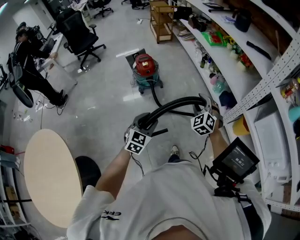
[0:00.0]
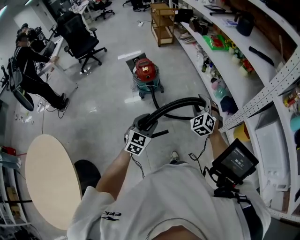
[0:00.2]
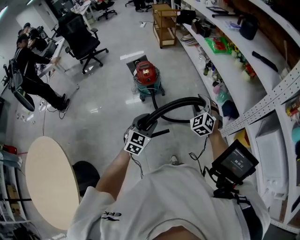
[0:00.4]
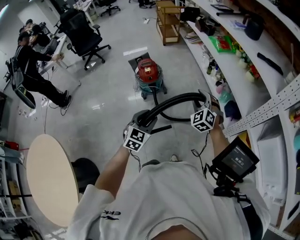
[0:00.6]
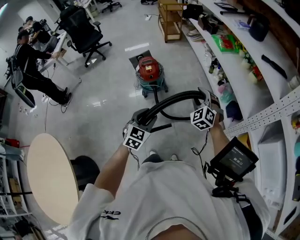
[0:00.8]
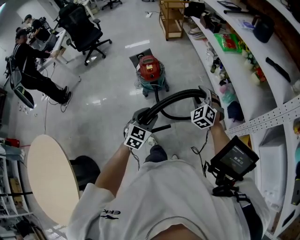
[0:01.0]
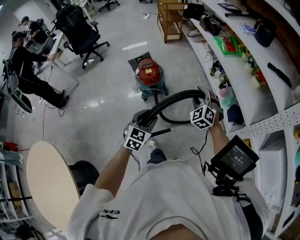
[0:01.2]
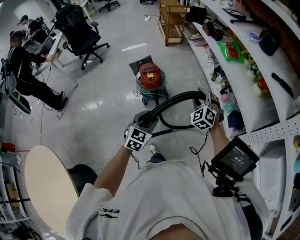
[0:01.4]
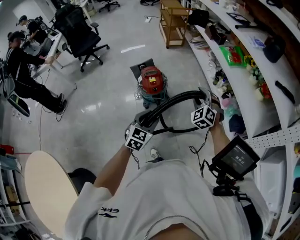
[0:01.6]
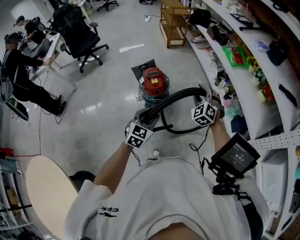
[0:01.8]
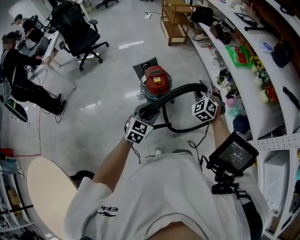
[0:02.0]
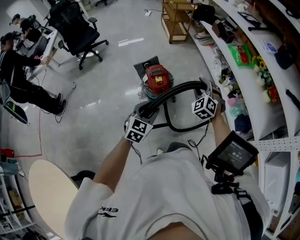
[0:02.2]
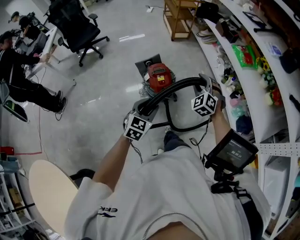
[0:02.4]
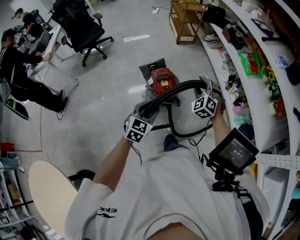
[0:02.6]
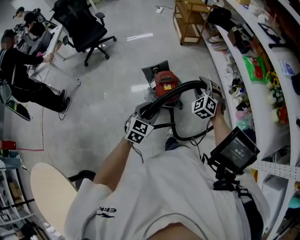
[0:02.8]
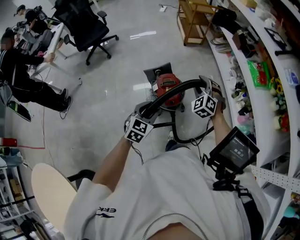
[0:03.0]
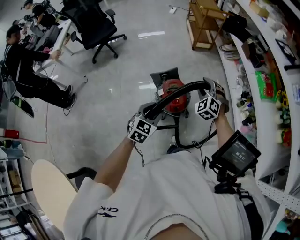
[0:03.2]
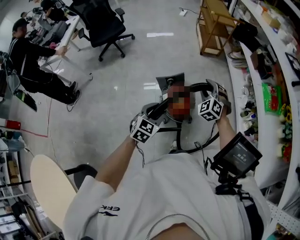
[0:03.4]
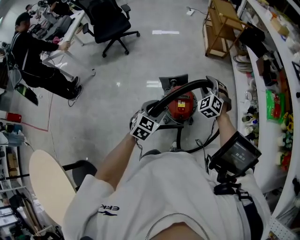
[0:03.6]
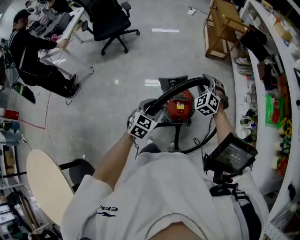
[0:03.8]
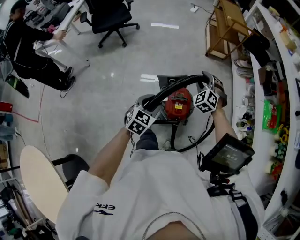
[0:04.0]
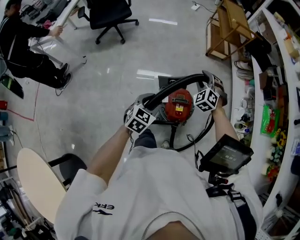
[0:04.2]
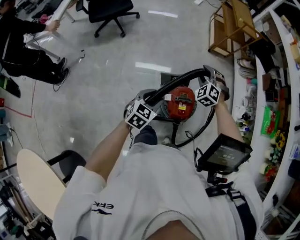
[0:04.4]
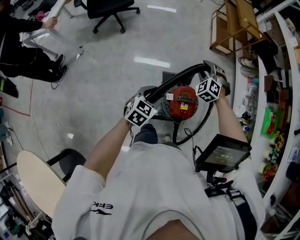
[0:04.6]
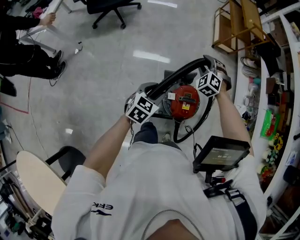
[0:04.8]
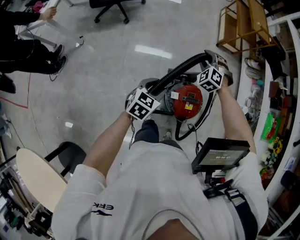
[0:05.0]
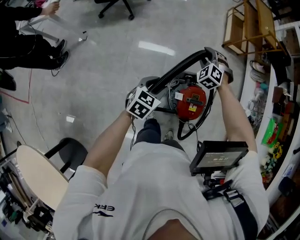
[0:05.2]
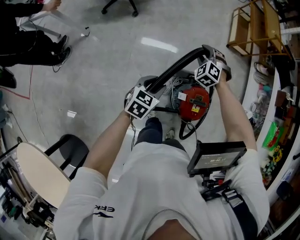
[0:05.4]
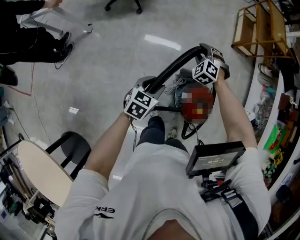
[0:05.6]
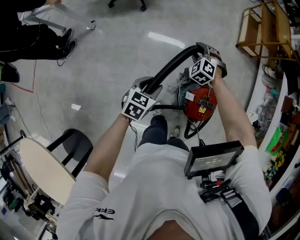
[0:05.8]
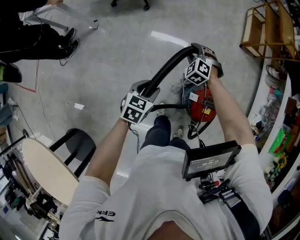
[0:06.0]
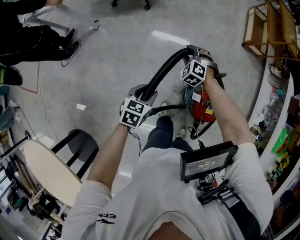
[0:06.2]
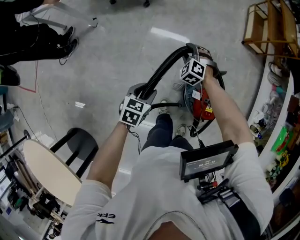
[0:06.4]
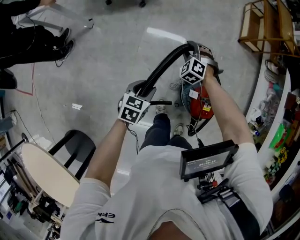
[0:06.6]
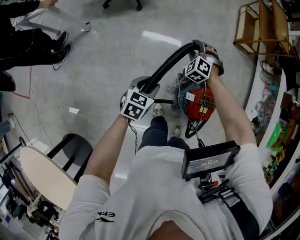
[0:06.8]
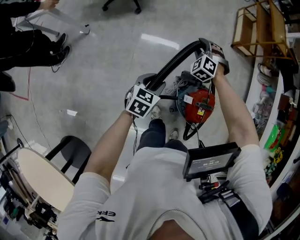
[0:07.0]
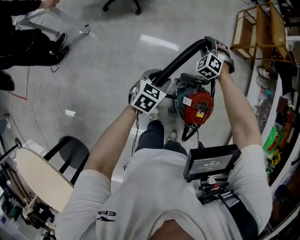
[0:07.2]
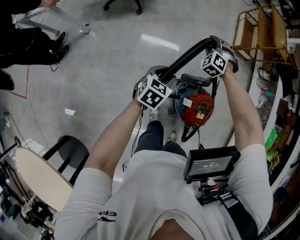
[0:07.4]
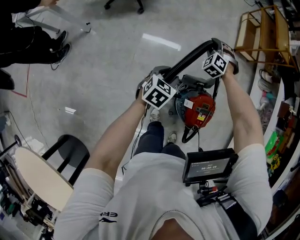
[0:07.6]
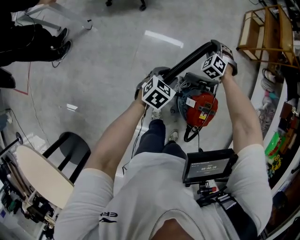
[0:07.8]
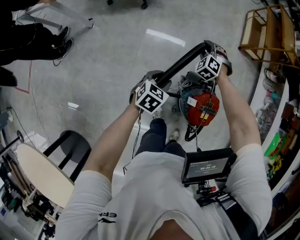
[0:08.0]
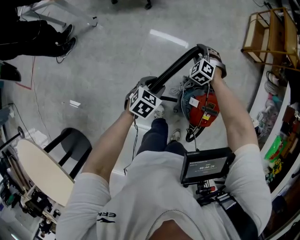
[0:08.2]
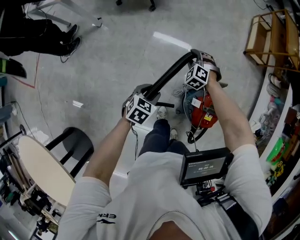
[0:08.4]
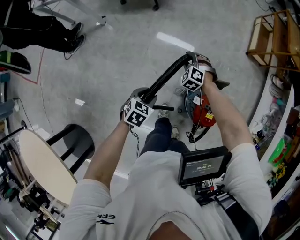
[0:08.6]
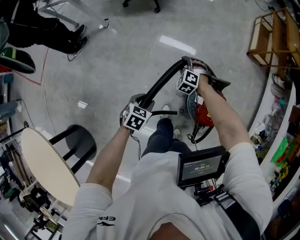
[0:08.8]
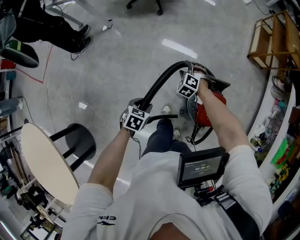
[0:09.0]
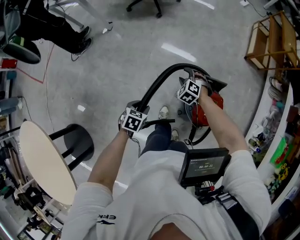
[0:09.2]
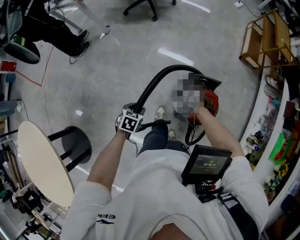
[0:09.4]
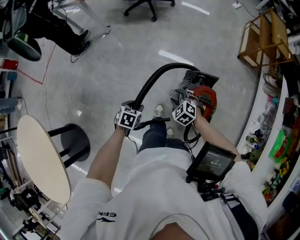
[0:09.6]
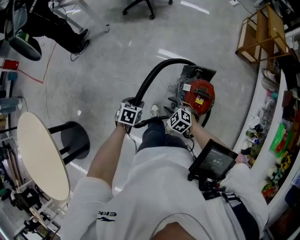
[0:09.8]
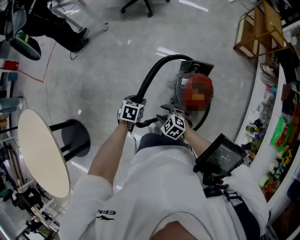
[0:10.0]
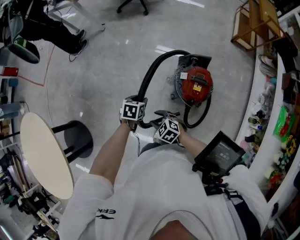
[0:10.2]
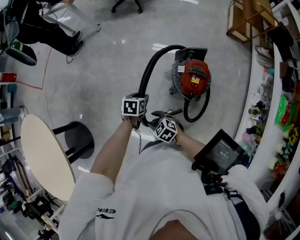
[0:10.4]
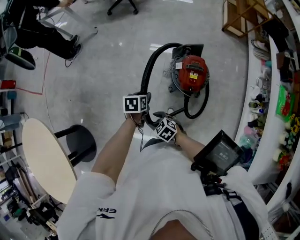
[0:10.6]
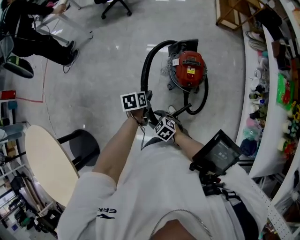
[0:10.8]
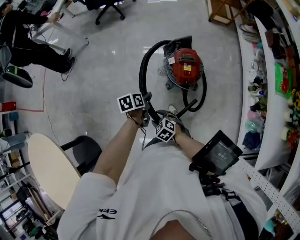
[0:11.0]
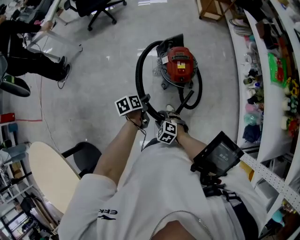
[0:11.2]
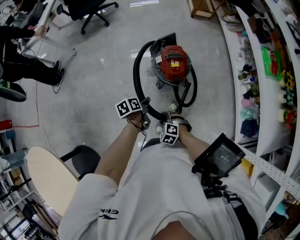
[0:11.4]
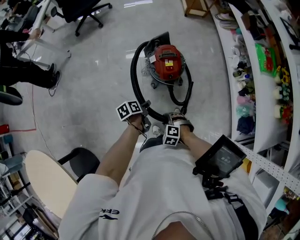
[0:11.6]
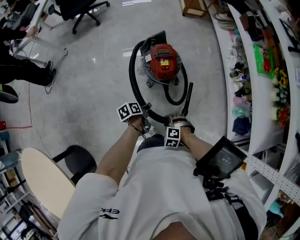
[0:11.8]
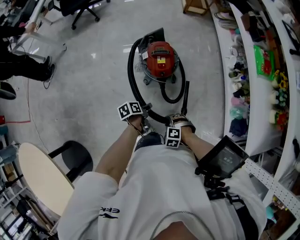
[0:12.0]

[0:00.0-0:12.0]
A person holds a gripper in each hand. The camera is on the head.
0:00.0 to 0:01.6: The left gripper moves forward, approximately 30 cm. The right gripper heads forward and to the left, covering about 35 cm.
0:01.6 to 0:03.0: The grippers both shift forward and to the left by about 30 cm.
0:03.0 to 0:04.4: Both grippers move forward and to the left, approximately 30 cm.
0:04.4 to 0:06.0: The two grippers go roughly 30 cm to the left and downward. The left gripper rotates approximately 20 degrees.
0:06.0 to 0:07.6: The left gripper heads forward, covering about 15 cm. Meanwhile the right gripper travels forward and to the right by approximately 15 cm.
0:07.6 to 0:09.0: The grippers both shift backward by about 25 cm. The right gripper changes its angle by approximately 20 degrees. The left gripper changes its angle by about 30 degrees.
0:09.0 to 0:10.4: The left gripper ends up about 20 cm from where it was. Meanwhile the right gripper moves roughly 50 cm, and rotates about 40 degrees.
0:10.4 to 0:12.0: The right gripper changes place by approximately 25 cm, and rotates approximately 30 degrees; the left gripper shifts by approximately 25 cm, and changes its angle by about 40 degrees.

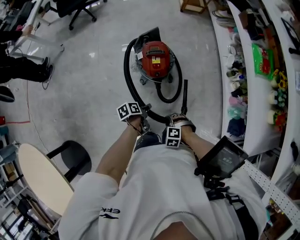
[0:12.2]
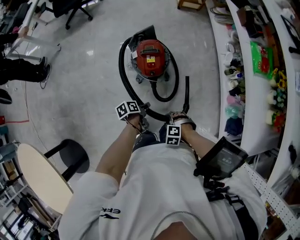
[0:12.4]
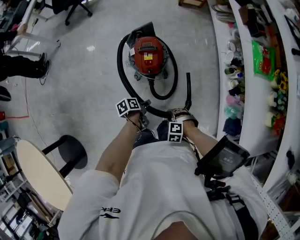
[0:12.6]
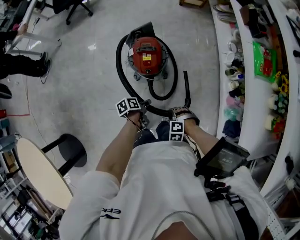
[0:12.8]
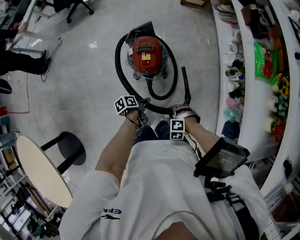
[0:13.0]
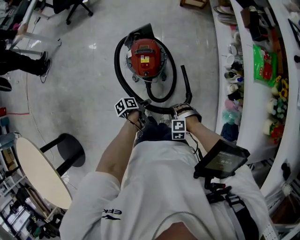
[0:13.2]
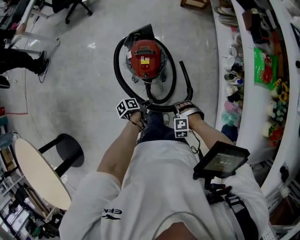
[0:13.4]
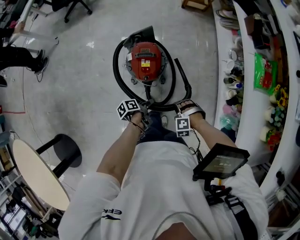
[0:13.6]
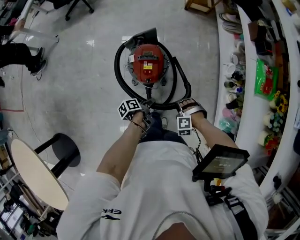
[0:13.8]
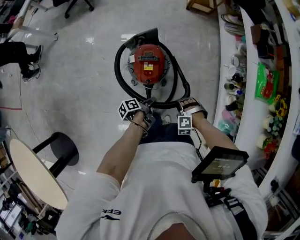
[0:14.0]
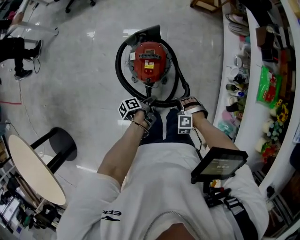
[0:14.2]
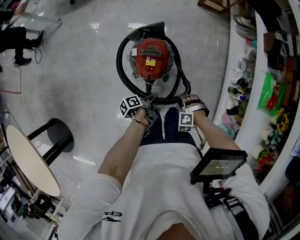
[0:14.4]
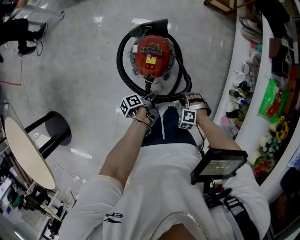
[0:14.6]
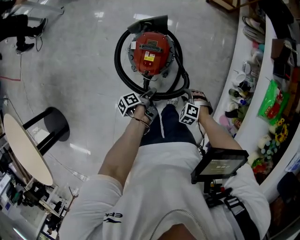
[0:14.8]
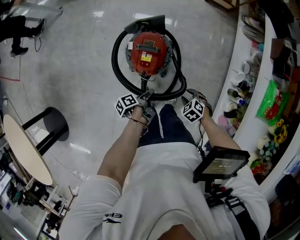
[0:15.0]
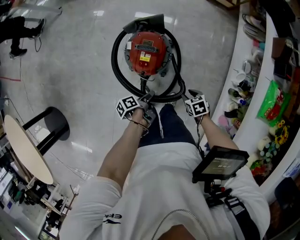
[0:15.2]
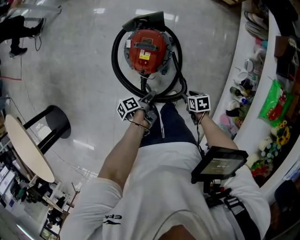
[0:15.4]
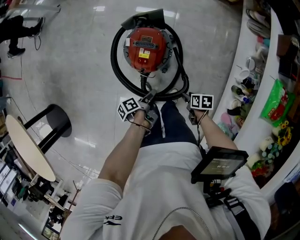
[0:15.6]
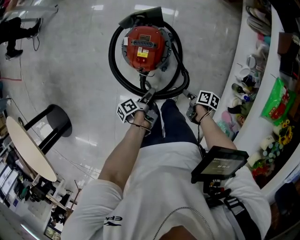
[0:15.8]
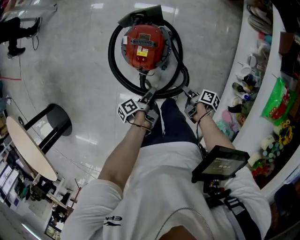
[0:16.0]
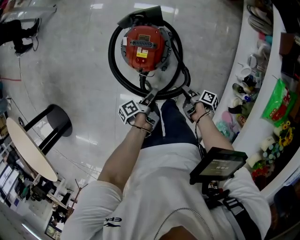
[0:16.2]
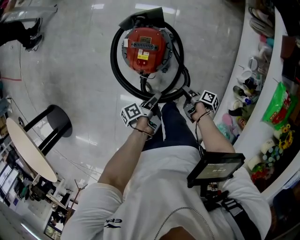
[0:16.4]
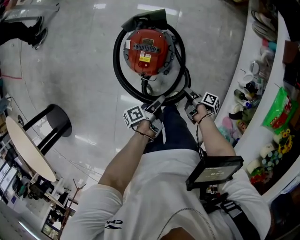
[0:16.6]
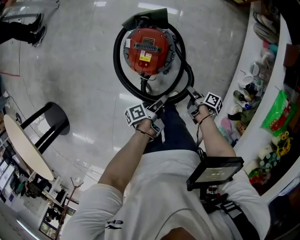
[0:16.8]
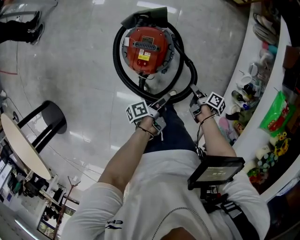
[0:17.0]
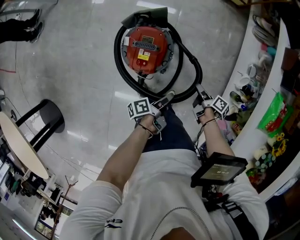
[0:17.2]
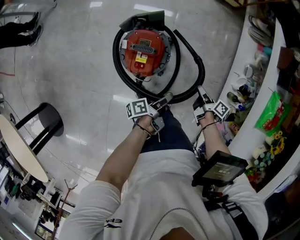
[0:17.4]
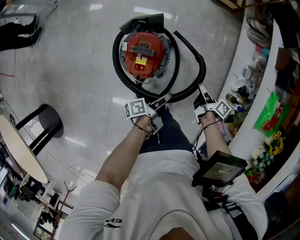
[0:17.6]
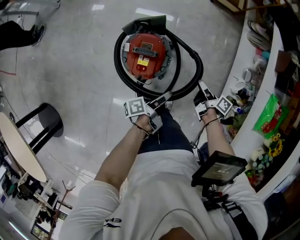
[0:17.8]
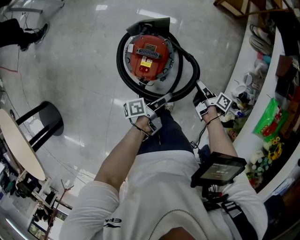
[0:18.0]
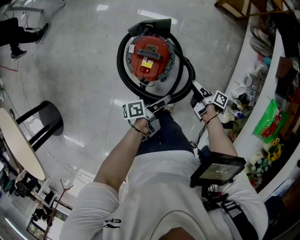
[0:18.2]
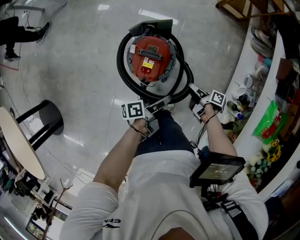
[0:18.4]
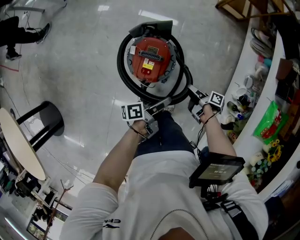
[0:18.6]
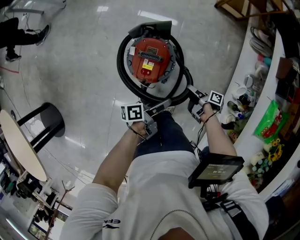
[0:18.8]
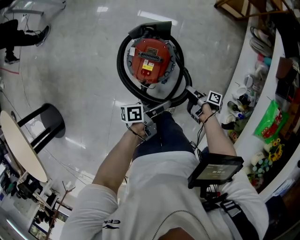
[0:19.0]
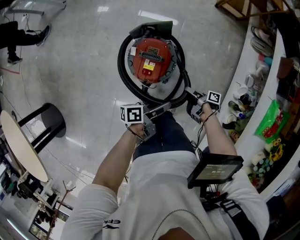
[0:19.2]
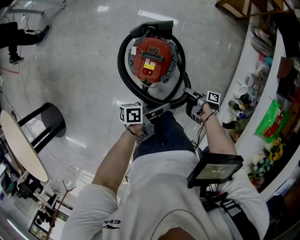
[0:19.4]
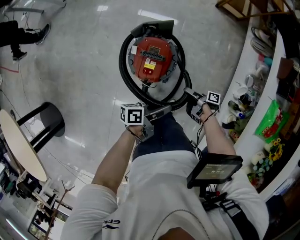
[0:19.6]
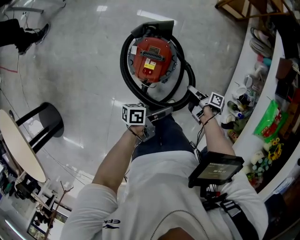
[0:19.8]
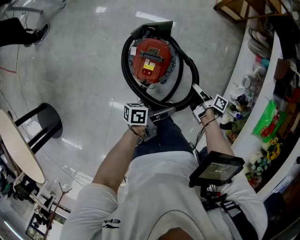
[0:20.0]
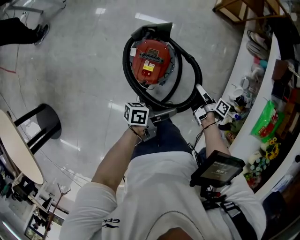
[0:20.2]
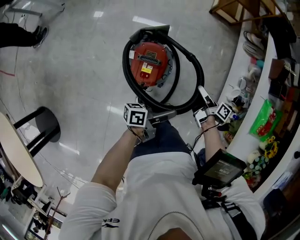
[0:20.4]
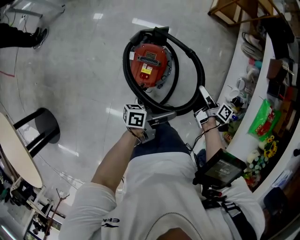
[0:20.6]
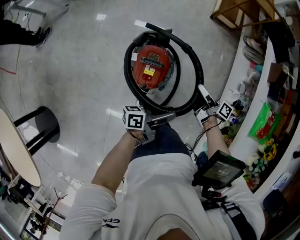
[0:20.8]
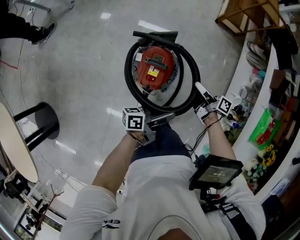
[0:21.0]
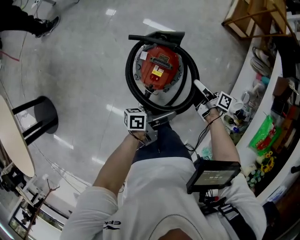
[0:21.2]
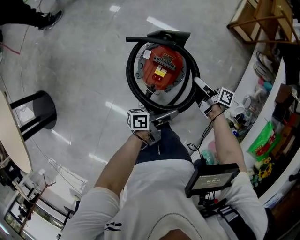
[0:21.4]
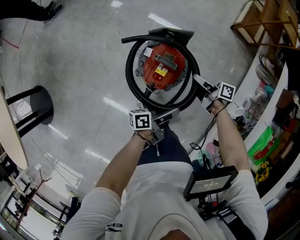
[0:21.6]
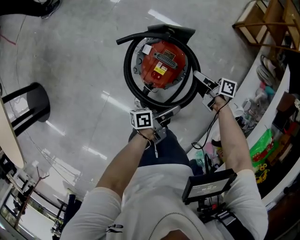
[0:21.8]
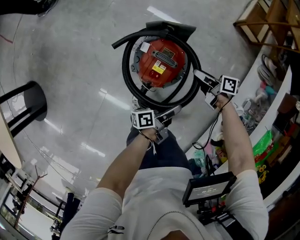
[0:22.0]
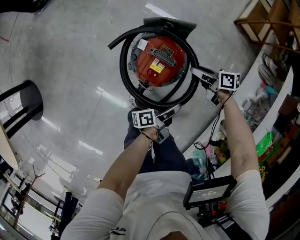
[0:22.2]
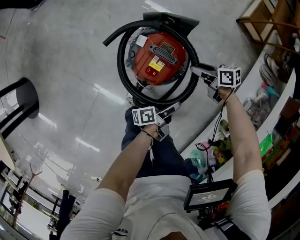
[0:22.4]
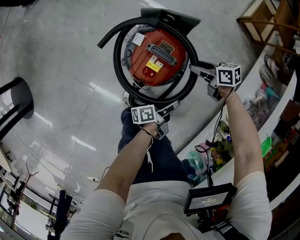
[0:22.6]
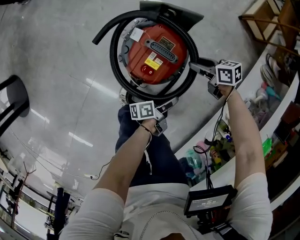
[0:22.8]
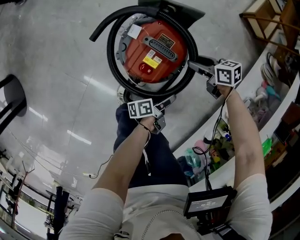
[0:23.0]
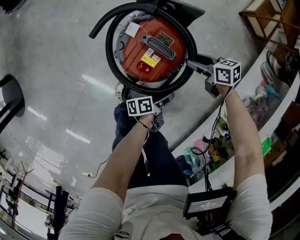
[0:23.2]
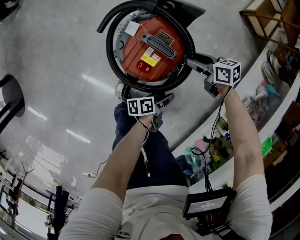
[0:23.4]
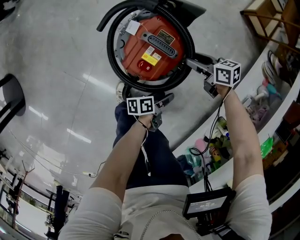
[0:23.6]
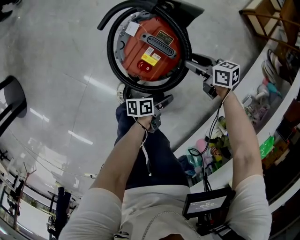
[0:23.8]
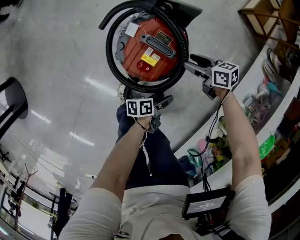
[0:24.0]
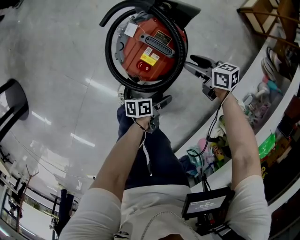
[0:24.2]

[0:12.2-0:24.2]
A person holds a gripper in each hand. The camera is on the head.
0:12.2 to 0:13.8: The right gripper changes place by some 25 cm, and changes its angle by some 20 degrees, while the left gripper shifts by some 15 cm, and rotates about 30 degrees.
0:13.8 to 0:15.2: The right gripper changes place by roughly 20 cm, and rolls clockwise, seen from behind, by approximately 70 degrees; the left gripper changes place by some 10 cm.
0:15.2 to 0:16.6: The right gripper is displaced downward by about 5 cm, and rotates around the line of its fingers by about 80 degrees, clockwise from behind. Meanwhile the left gripper moves to the right, approximately 5 cm.
0:16.6 to 0:18.2: The right gripper goes some 15 cm forward and upward. Meanwhile the left gripper is displaced upward and forward by approximately 10 cm, and changes its angle by roughly 20 degrees.
0:18.2 to 0:19.8: The left gripper swivels some 20 degrees.
0:19.8 to 0:21.2: The right gripper goes some 15 cm upward, forward and to the left, and swivels about 30 degrees, while the left gripper moves roughly 5 cm.
0:21.2 to 0:22.6: Both grippers move downward, roughly 20 cm. The right gripper swivels roughly 60 degrees, while the left gripper turns by roughly 30 degrees.
0:22.6 to 0:24.2: The left gripper goes about 10 cm downward, and swivels about 20 degrees.
